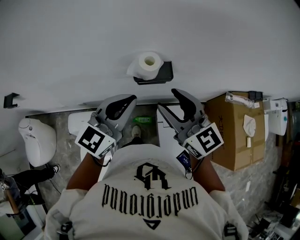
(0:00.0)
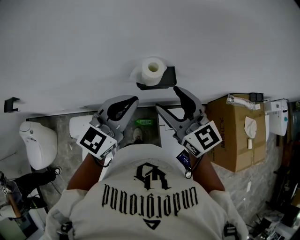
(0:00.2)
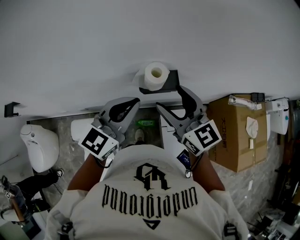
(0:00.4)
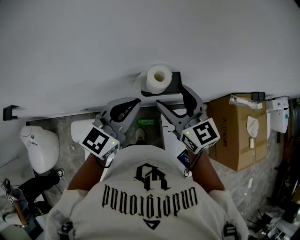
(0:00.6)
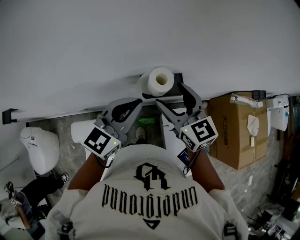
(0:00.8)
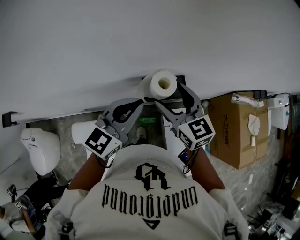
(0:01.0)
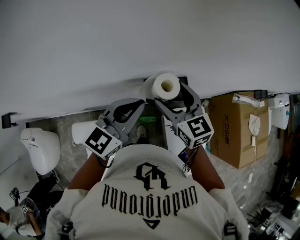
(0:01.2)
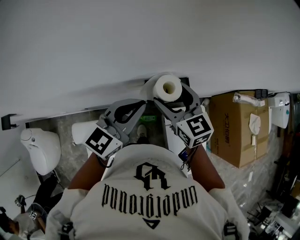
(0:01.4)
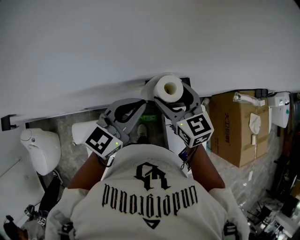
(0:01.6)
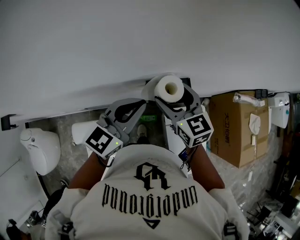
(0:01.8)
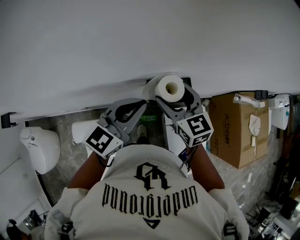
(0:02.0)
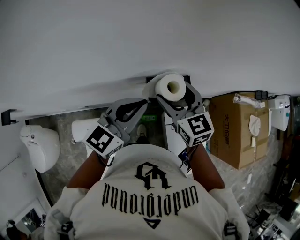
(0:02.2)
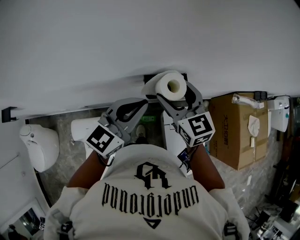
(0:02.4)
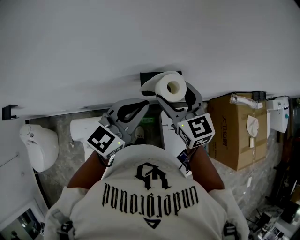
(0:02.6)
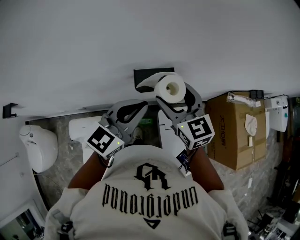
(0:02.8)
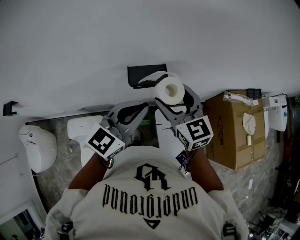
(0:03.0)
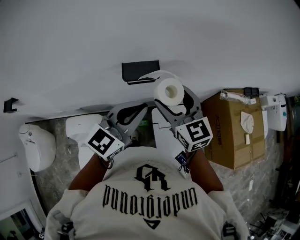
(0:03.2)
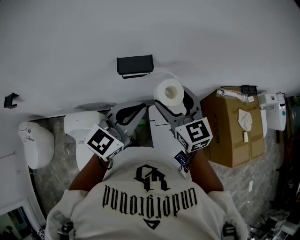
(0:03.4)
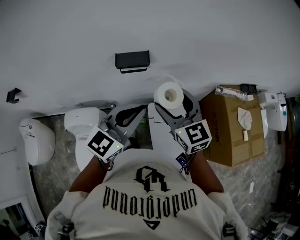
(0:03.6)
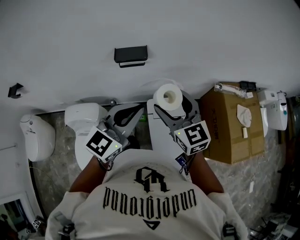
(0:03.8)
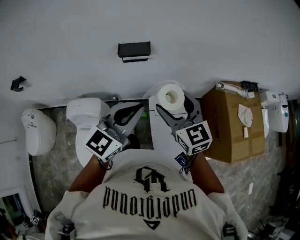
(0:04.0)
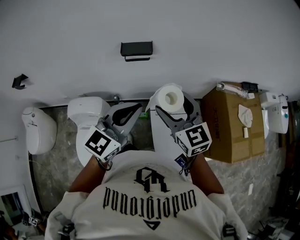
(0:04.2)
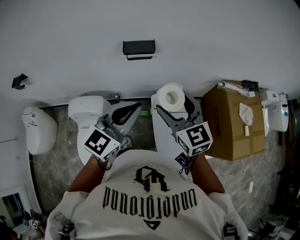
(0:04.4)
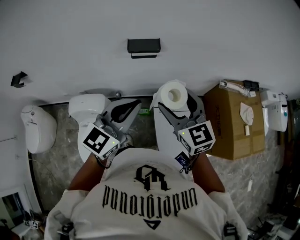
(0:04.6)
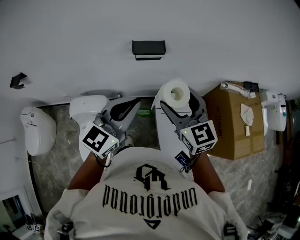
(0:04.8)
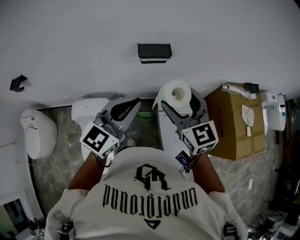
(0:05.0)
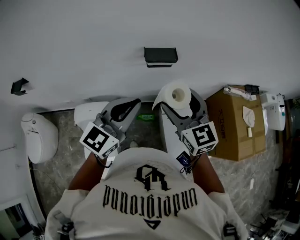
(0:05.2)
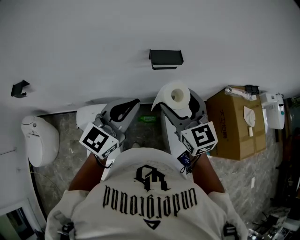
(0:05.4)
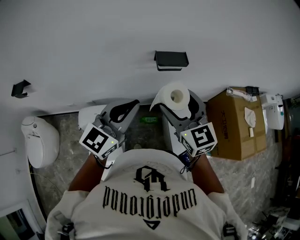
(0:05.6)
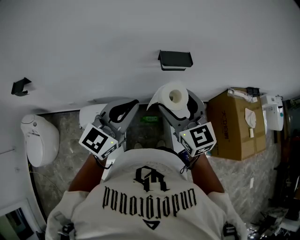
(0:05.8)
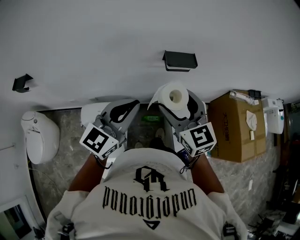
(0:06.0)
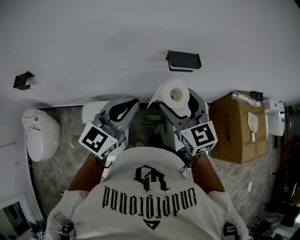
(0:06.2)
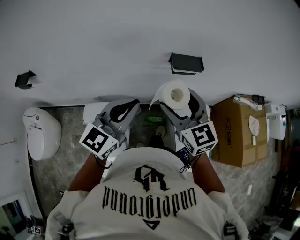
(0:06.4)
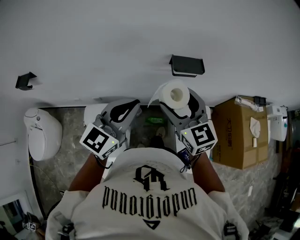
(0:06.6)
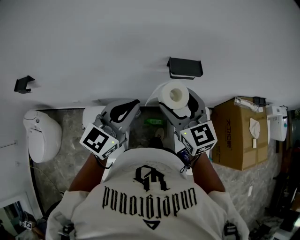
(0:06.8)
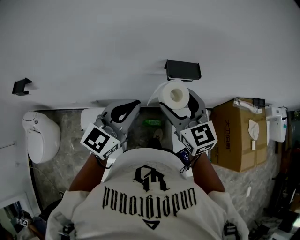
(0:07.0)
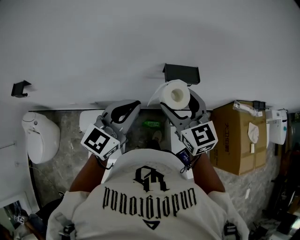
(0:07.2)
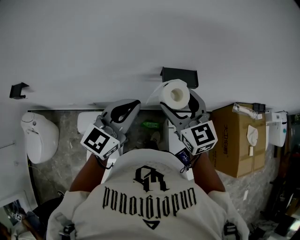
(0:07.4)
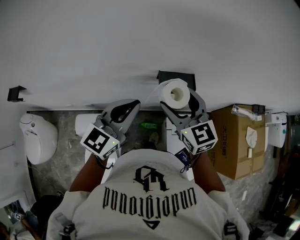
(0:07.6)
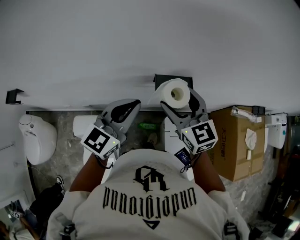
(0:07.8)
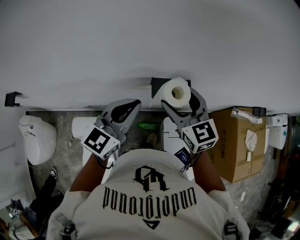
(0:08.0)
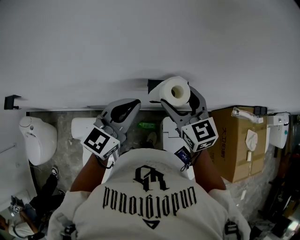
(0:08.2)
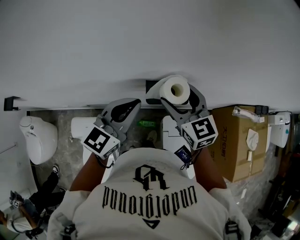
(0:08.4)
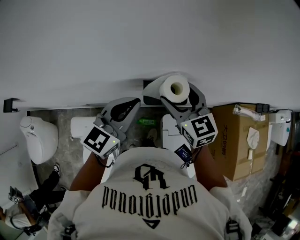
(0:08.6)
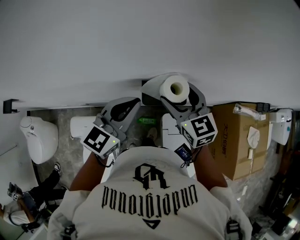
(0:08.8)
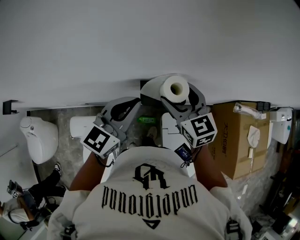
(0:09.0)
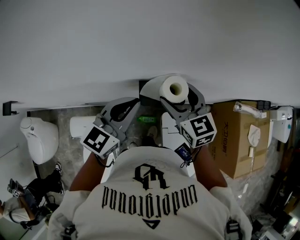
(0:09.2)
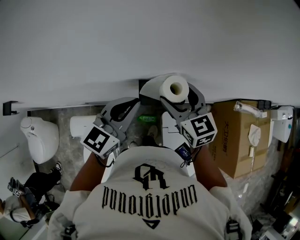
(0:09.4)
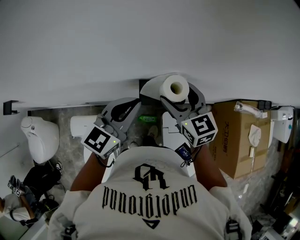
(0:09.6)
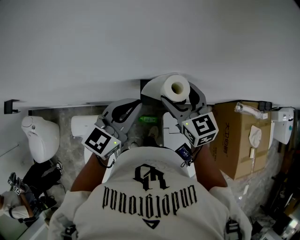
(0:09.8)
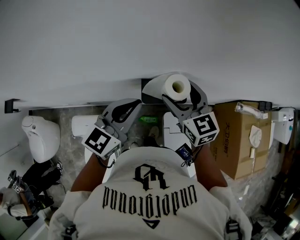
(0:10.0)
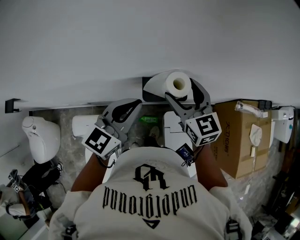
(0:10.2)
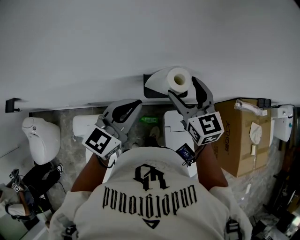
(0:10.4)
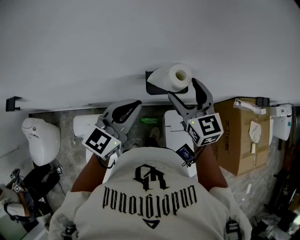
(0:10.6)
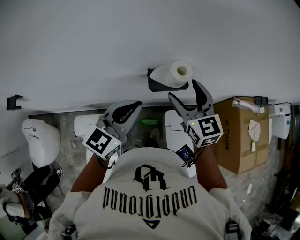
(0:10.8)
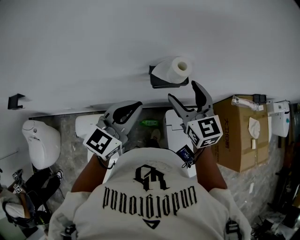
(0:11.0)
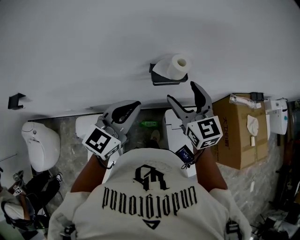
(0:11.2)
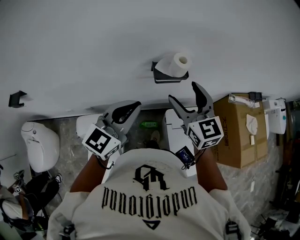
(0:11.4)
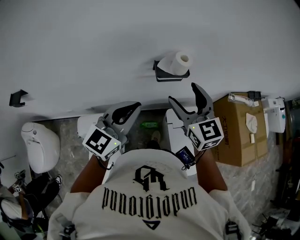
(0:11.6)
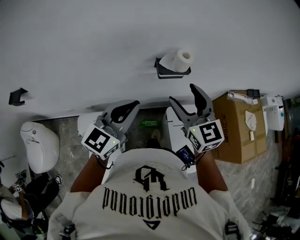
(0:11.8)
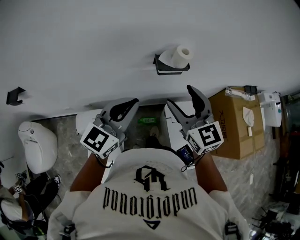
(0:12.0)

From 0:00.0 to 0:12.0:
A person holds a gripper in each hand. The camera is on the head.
From 0:00.0 to 0:01.6: Both grippers travel together forward, downward and to the left, some 15 cm. The right gripper swivels roughly 20 degrees, and opens its fingers.
From 0:01.6 to 0:03.0: The left gripper shifts roughly 15 cm to the right and backward. The right gripper goes roughly 15 cm to the right, backward and upward.
From 0:03.0 to 0:04.4: The left gripper moves backward, approximately 20 cm. Meanwhile the right gripper travels backward and to the right by approximately 25 cm.
From 0:04.4 to 0:06.0: The two grippers go about 25 cm to the left.
From 0:06.0 to 0:07.6: The two grippers go about 15 cm forward.
From 0:07.6 to 0:09.0: The left gripper heads forward and to the right, covering some 15 cm. The right gripper heads forward, to the right and downward, covering approximately 15 cm.
From 0:09.0 to 0:10.4: The grippers make only small movements.
From 0:10.4 to 0:12.0: The grippers both shift backward by roughly 20 cm.

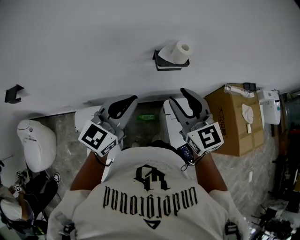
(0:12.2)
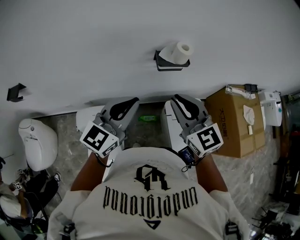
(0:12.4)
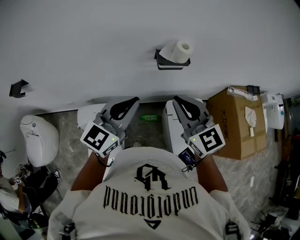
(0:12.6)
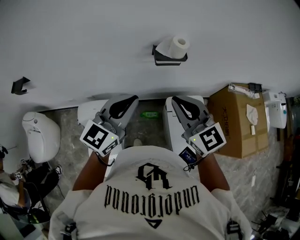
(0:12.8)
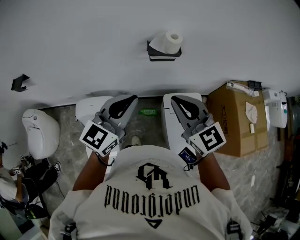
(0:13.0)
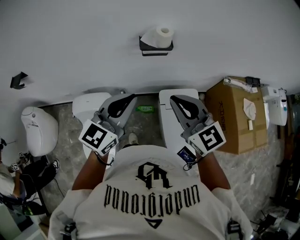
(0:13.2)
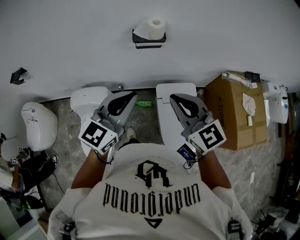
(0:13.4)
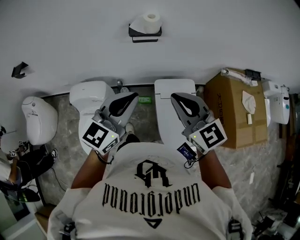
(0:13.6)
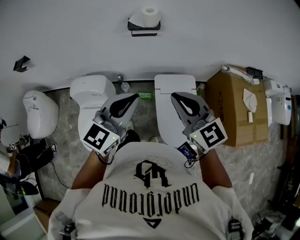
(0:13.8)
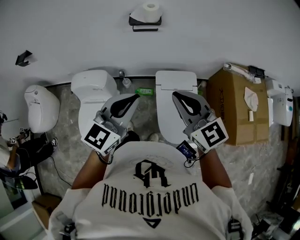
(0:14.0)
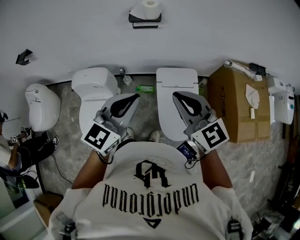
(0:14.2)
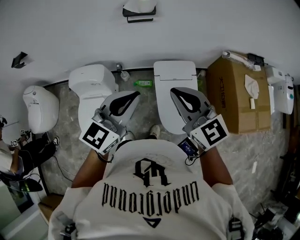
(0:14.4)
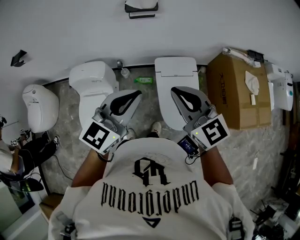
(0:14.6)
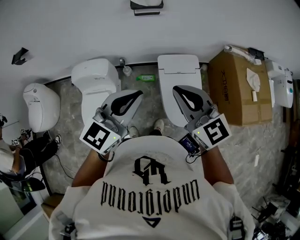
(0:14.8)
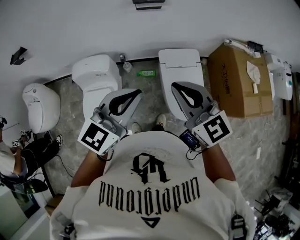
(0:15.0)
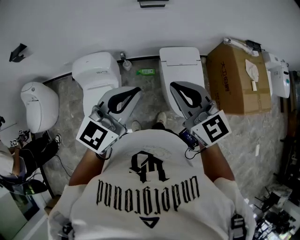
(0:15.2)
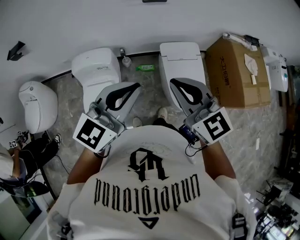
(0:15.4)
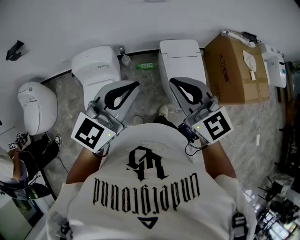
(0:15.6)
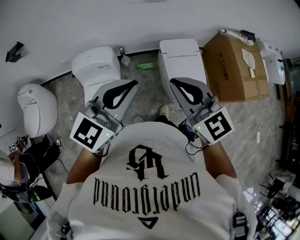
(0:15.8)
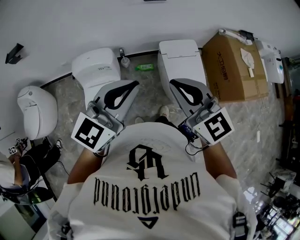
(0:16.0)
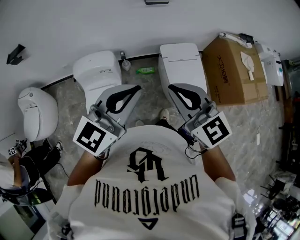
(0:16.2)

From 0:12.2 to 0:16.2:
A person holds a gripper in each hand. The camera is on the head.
From 0:12.2 to 0:13.6: The grippers both shift to the right and backward by about 25 cm. The right gripper closes.
From 0:13.6 to 0:14.8: Both grippers travel together backward, approximately 10 cm.
From 0:14.8 to 0:16.2: Both grippers move to the left and backward, roughly 20 cm.

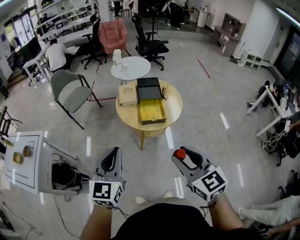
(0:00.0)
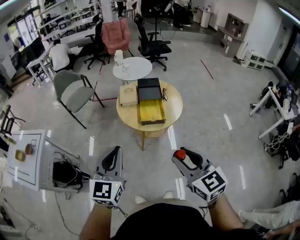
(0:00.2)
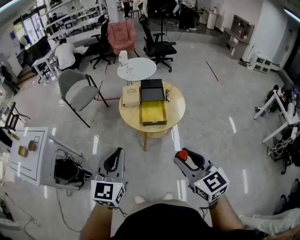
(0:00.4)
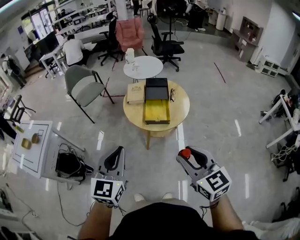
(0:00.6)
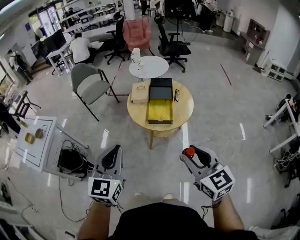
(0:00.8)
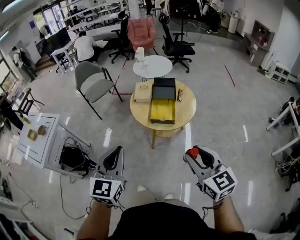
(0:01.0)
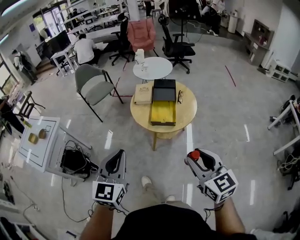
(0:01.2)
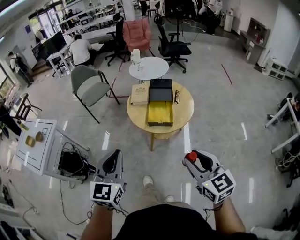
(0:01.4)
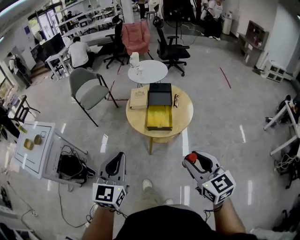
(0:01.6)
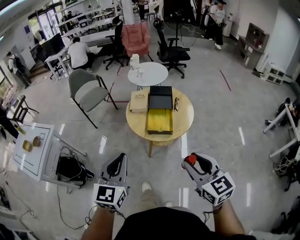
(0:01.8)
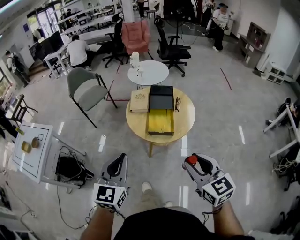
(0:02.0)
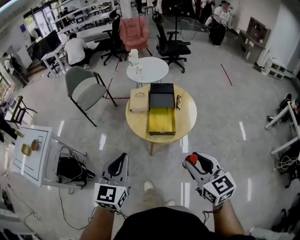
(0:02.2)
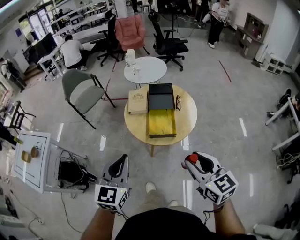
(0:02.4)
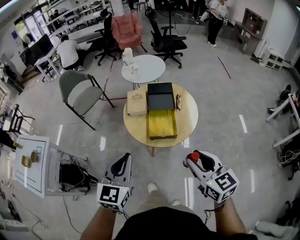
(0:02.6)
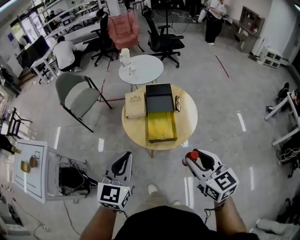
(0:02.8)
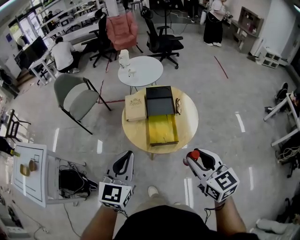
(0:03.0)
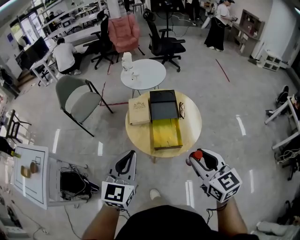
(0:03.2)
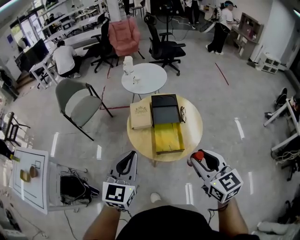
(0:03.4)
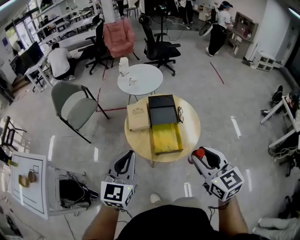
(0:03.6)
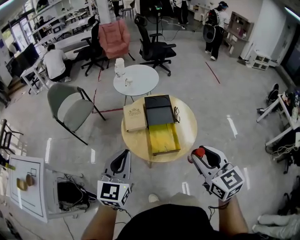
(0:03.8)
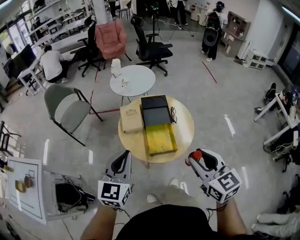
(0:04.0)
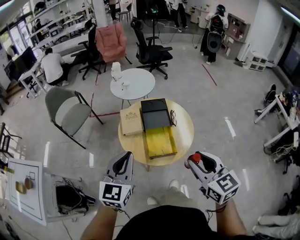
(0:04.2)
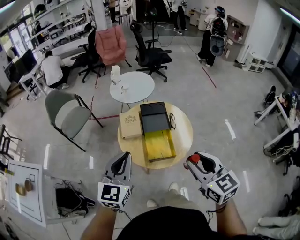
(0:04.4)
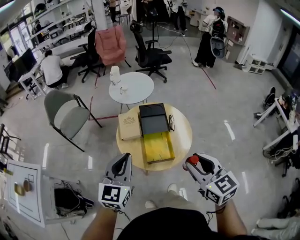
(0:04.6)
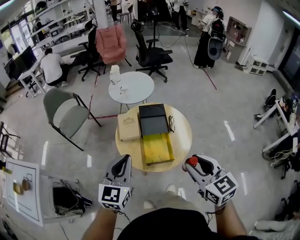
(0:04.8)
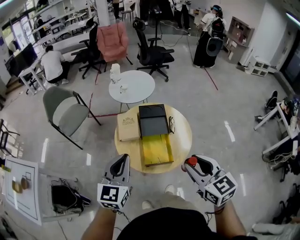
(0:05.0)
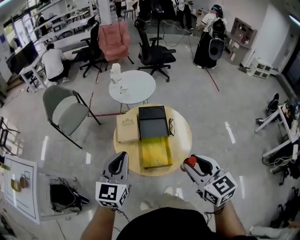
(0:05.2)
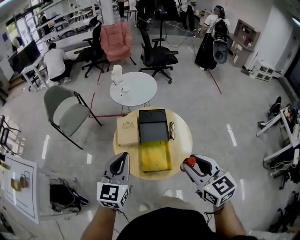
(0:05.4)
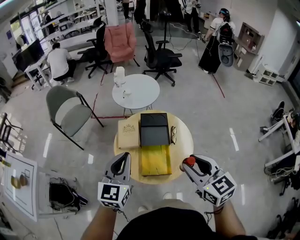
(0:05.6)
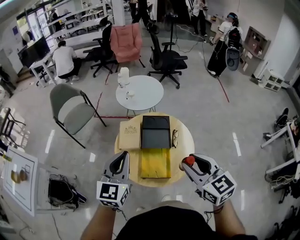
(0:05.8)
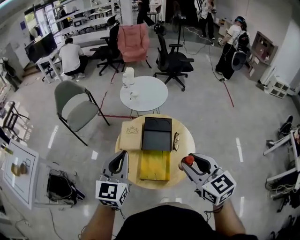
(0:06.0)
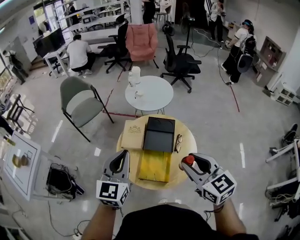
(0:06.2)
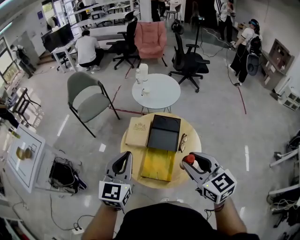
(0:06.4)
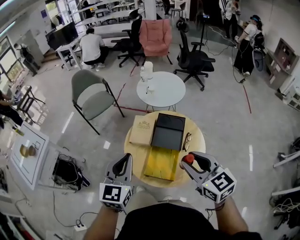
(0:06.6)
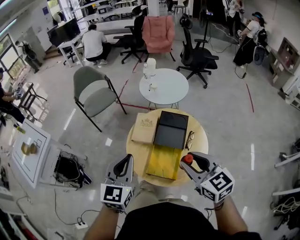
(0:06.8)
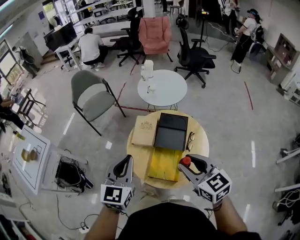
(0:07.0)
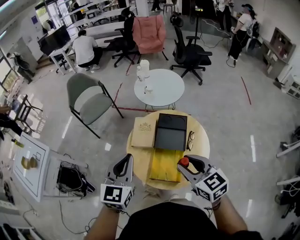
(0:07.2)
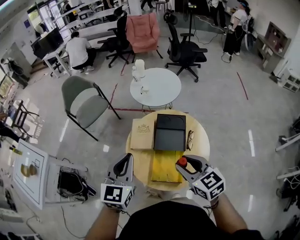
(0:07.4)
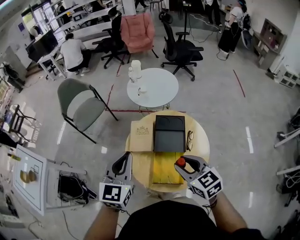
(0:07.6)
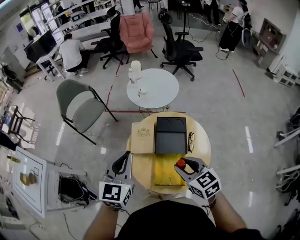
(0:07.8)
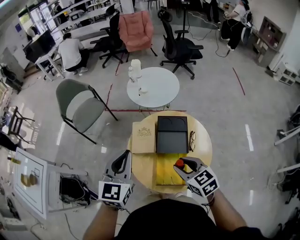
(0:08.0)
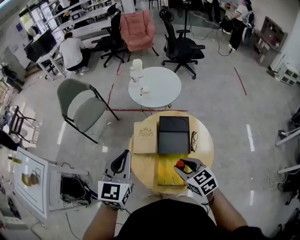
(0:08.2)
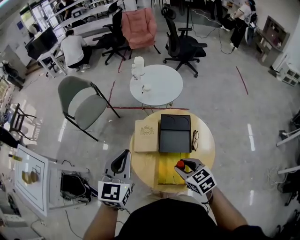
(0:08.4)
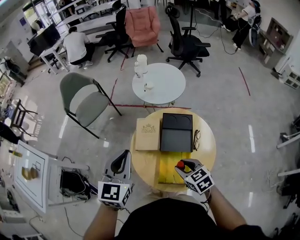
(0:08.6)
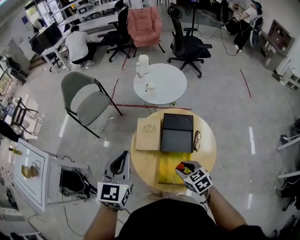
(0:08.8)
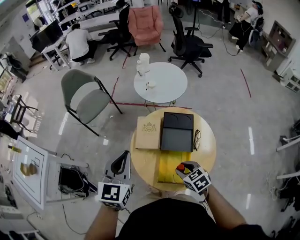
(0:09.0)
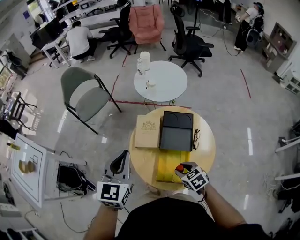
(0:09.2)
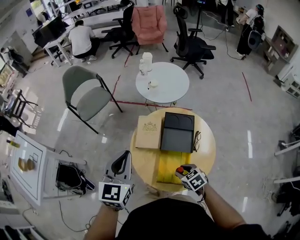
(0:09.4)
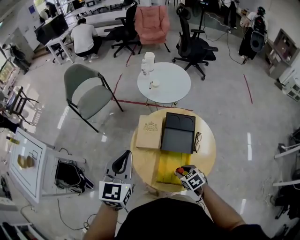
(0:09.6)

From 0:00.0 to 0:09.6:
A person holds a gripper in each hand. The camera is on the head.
From 0:00.0 to 0:01.6: The right gripper travels to the right by approximately 10 cm. The left gripper moves to the right, about 10 cm.
From 0:01.6 to 0:03.2: Both grippers travel together forward, some 25 cm.
From 0:03.2 to 0:04.8: The left gripper moves forward, about 5 cm.
From 0:04.8 to 0:06.4: The left gripper is displaced forward and to the right by some 10 cm. The right gripper goes roughly 15 cm forward and to the right, and changes its angle by about 20 degrees.
From 0:06.4 to 0:08.0: The right gripper travels downward, forward and to the left by some 20 cm, while the left gripper heads forward, covering some 15 cm.
From 0:08.0 to 0:09.6: The right gripper travels downward by about 20 cm, and turns by approximately 20 degrees.
